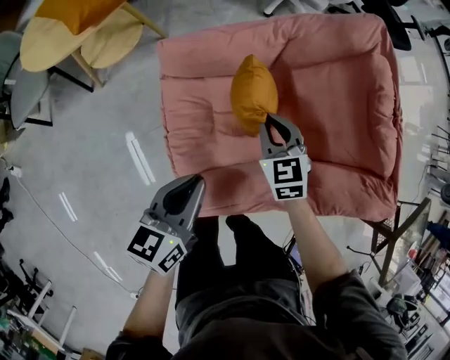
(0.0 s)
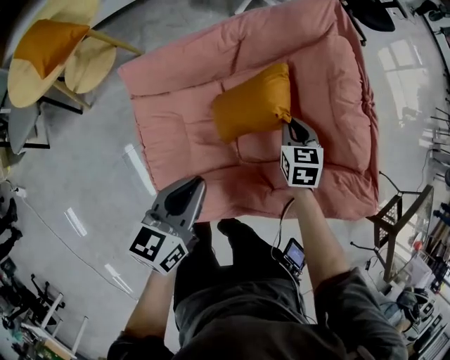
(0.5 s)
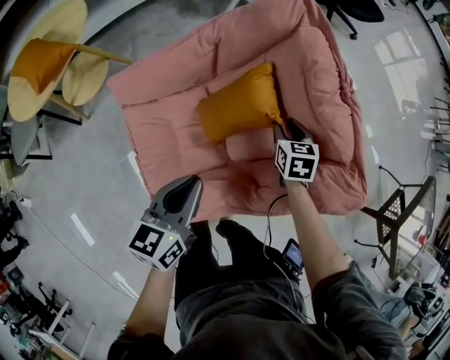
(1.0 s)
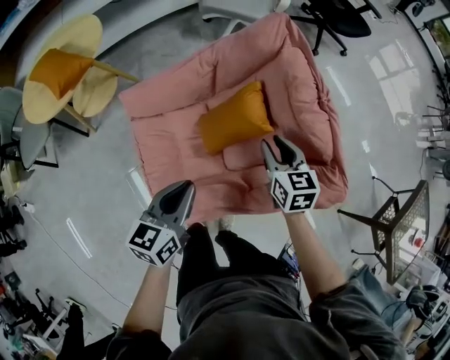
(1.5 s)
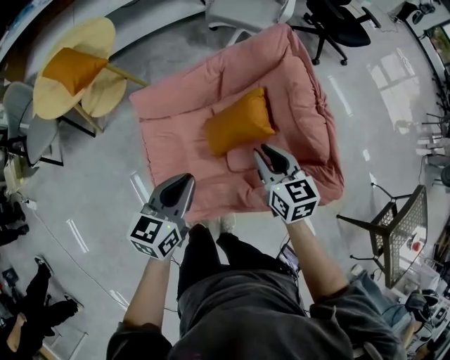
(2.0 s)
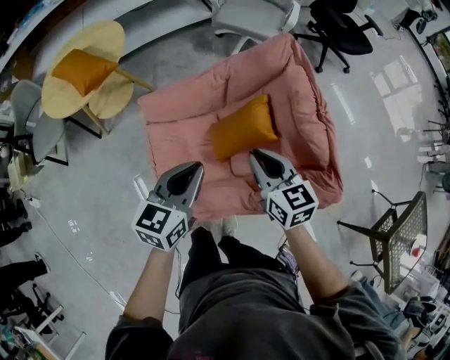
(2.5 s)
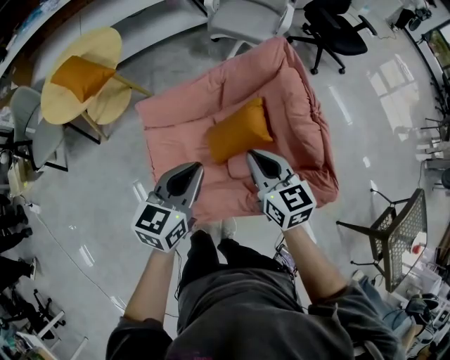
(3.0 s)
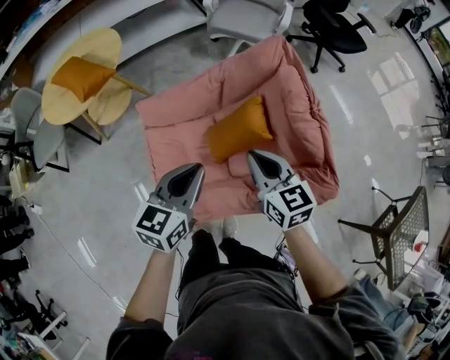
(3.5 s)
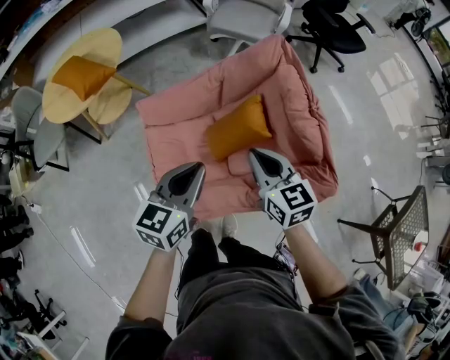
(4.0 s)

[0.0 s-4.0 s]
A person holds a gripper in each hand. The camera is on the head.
0.0 to 2.0 s: The grippers both shift to the right and upward by roughly 20 cm. The right gripper rotates approximately 30 degrees.
2.0 to 4.0 s: Both grippers travel together upward, roughly 5 cm.

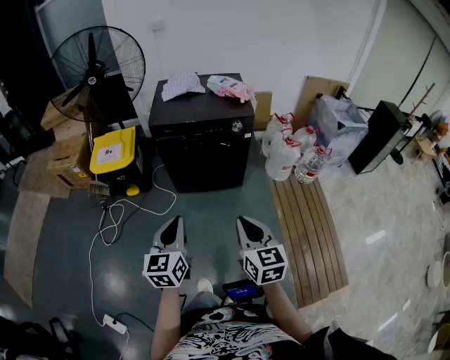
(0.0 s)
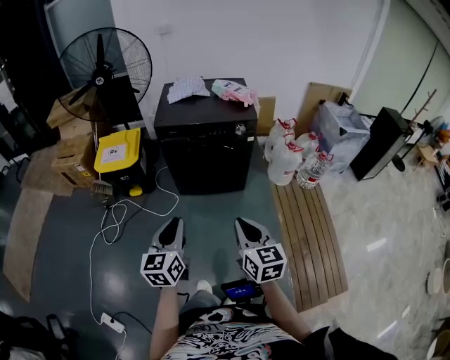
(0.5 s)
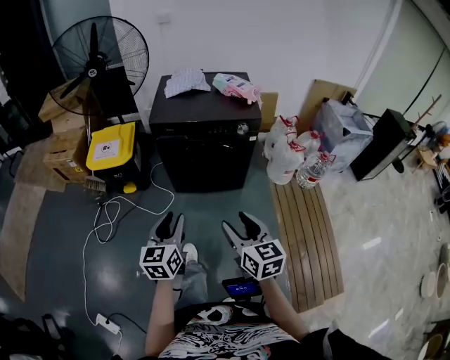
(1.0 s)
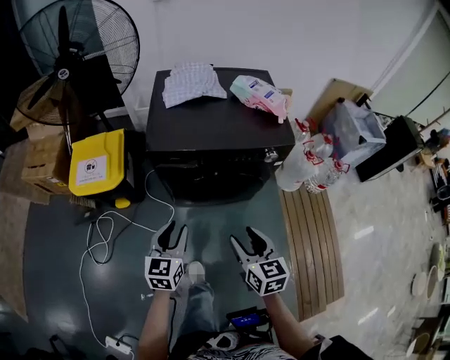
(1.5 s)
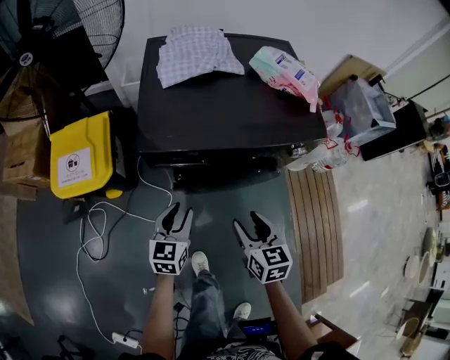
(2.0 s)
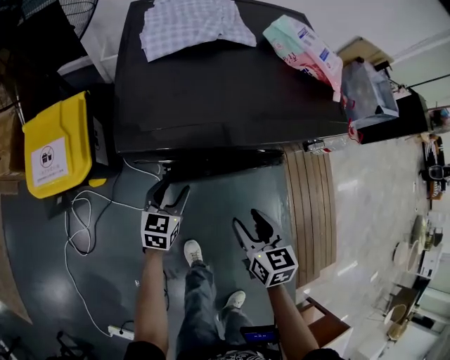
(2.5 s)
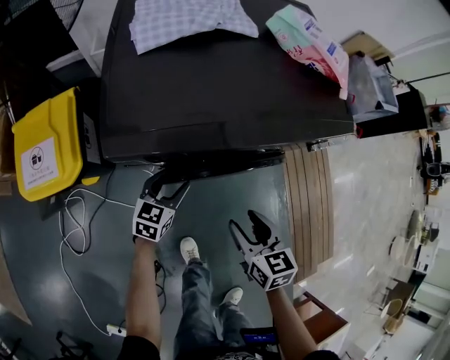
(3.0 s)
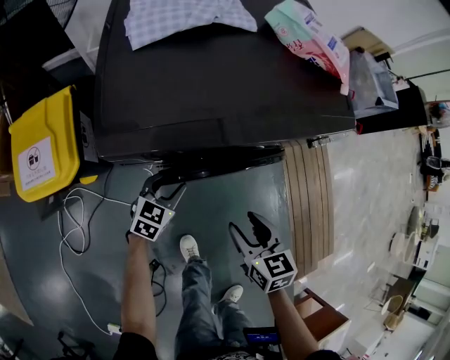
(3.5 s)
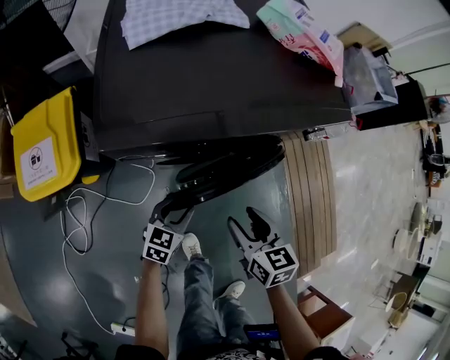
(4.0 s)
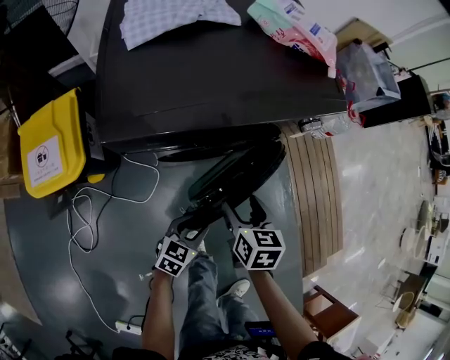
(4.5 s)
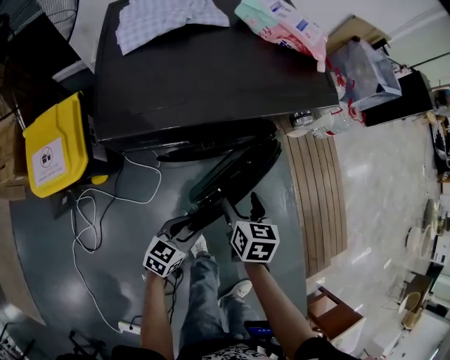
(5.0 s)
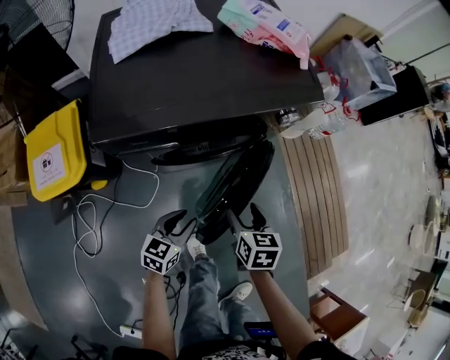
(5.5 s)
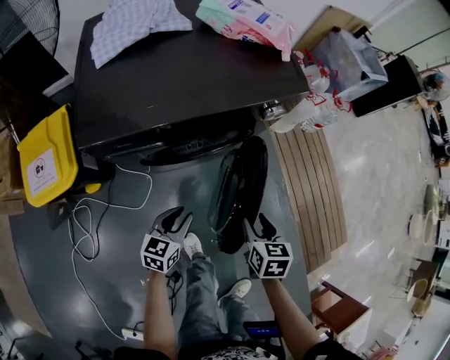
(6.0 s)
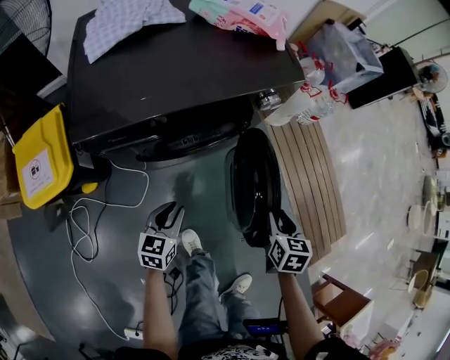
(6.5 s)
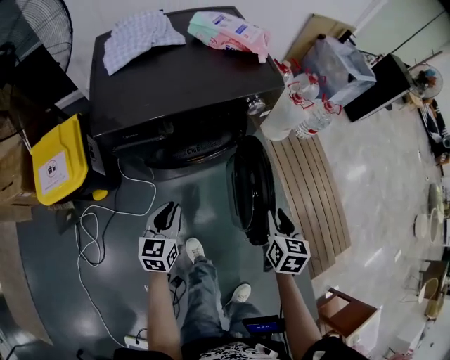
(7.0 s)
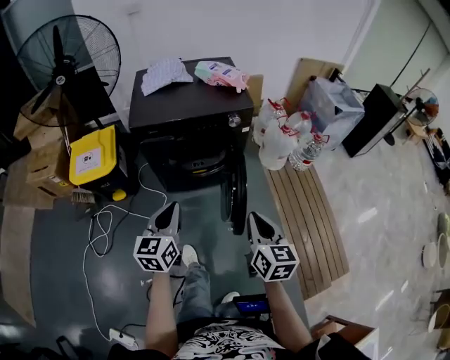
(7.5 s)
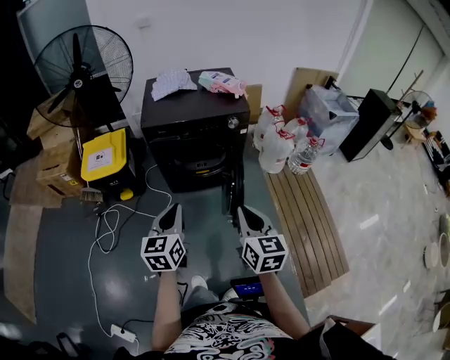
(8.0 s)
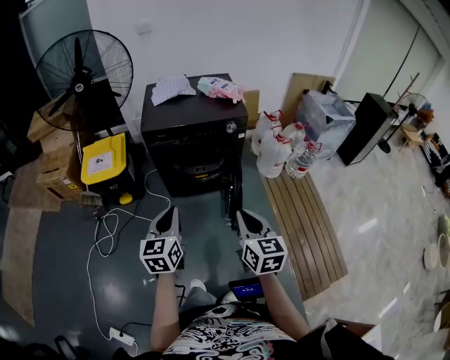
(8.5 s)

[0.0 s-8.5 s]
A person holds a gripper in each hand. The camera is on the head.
0.0 to 2.0 s: The two grippers travel together, forward, some 40 cm. The grippers both shift downward by roughly 25 cm. The left gripper opens its fingers. The right gripper opens up.
2.0 to 4.0 s: The right gripper is displaced downward by about 10 cm; the left gripper is displaced downward by approximately 15 cm, and swivels about 30 degrees.
4.0 to 6.5 s: The right gripper heads to the right, covering approximately 25 cm, and swivels some 30 degrees, while the left gripper shifts about 5 cm to the right.
6.5 to 8.5 s: Both grippers travel together upward, roughly 35 cm. The right gripper points its fingers approximately 30 degrees further upward, and closes its fingers, while the left gripper swivels some 30 degrees, and closes its fingers.

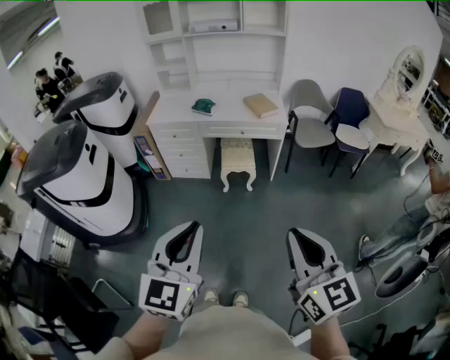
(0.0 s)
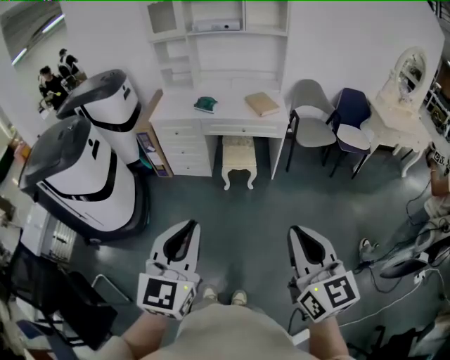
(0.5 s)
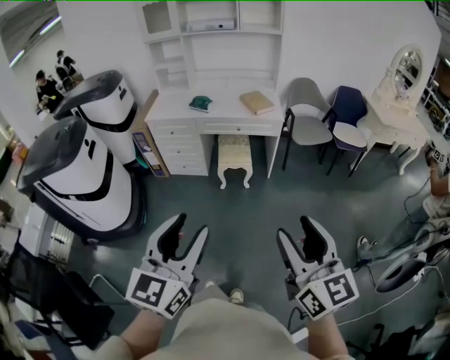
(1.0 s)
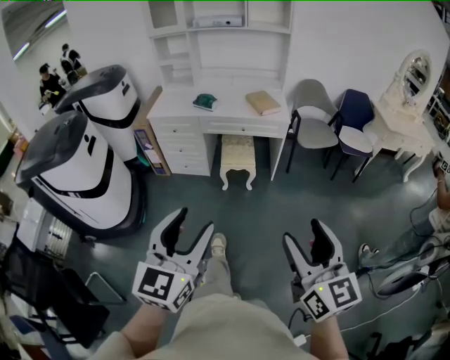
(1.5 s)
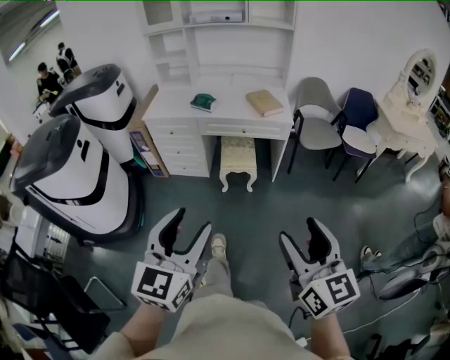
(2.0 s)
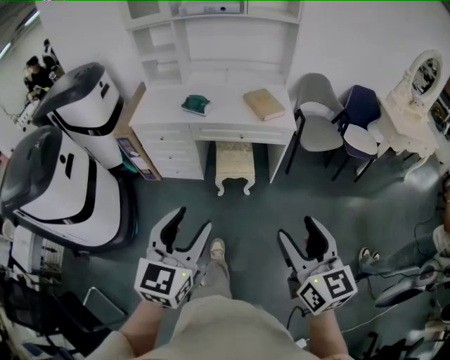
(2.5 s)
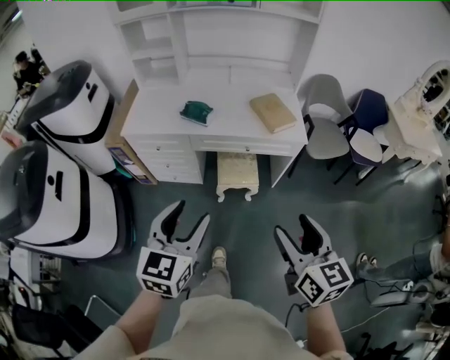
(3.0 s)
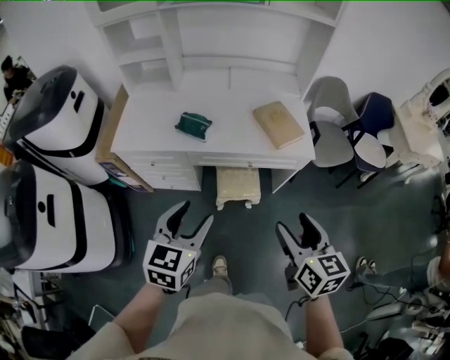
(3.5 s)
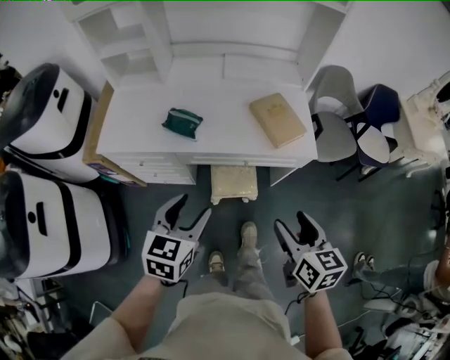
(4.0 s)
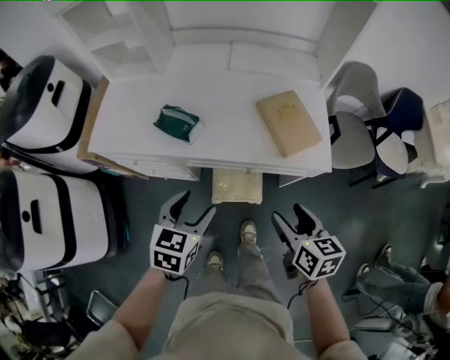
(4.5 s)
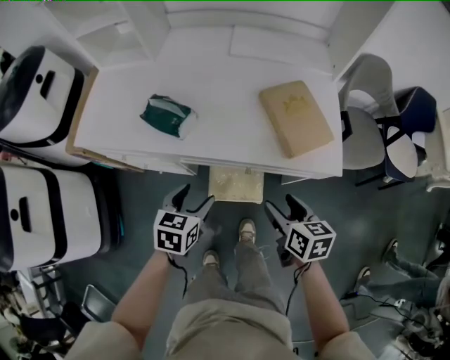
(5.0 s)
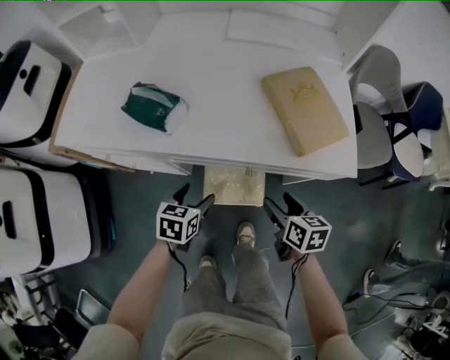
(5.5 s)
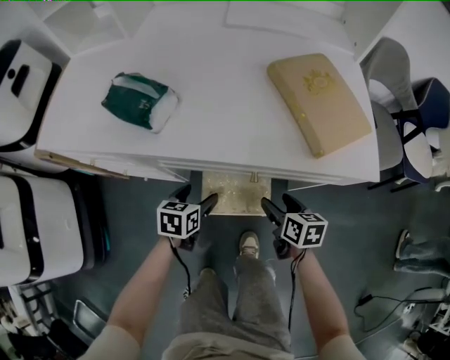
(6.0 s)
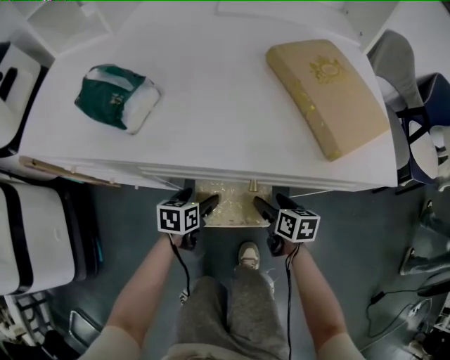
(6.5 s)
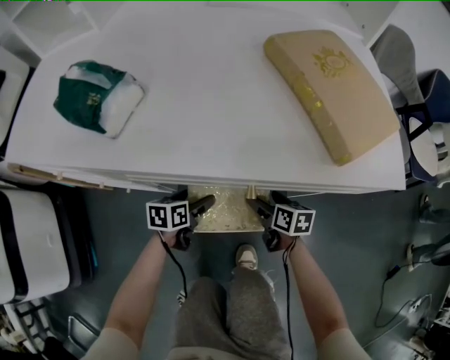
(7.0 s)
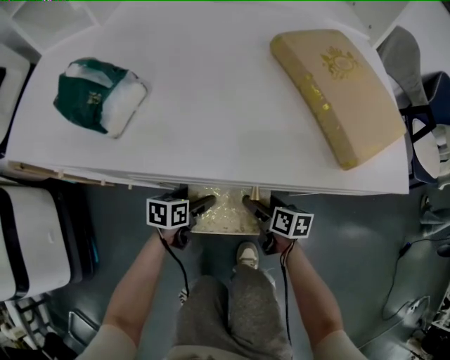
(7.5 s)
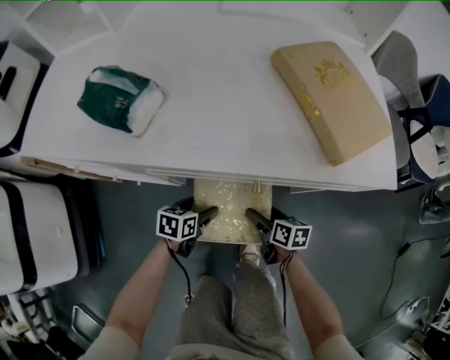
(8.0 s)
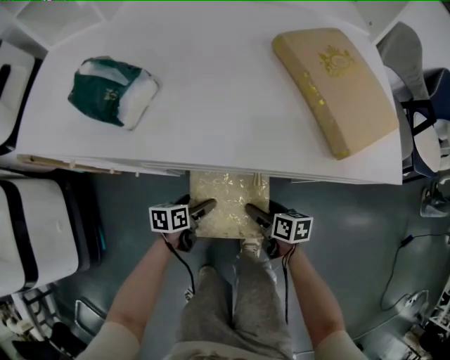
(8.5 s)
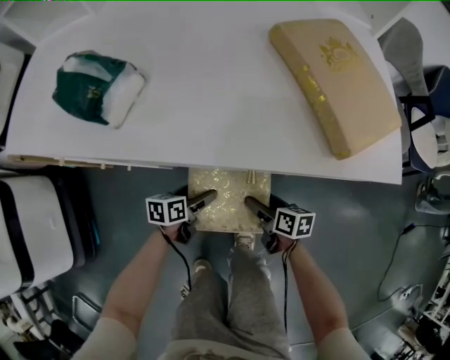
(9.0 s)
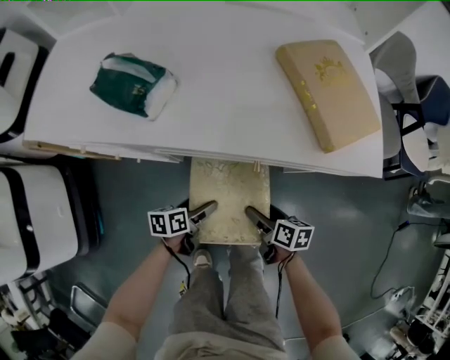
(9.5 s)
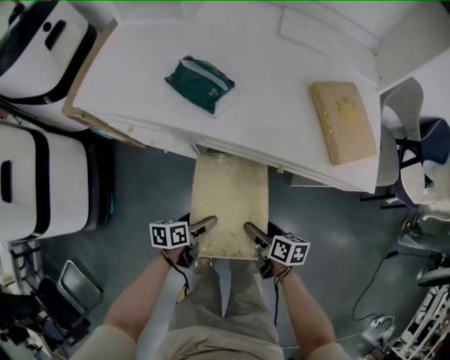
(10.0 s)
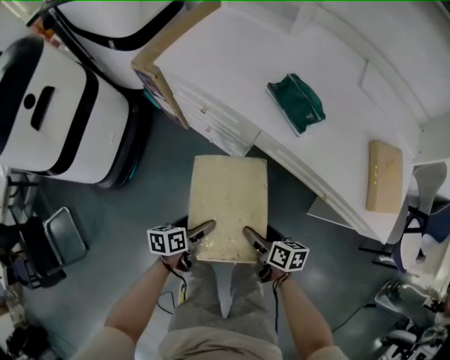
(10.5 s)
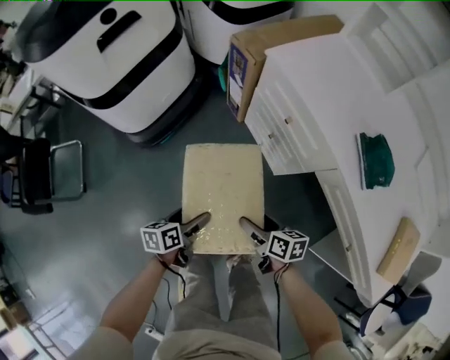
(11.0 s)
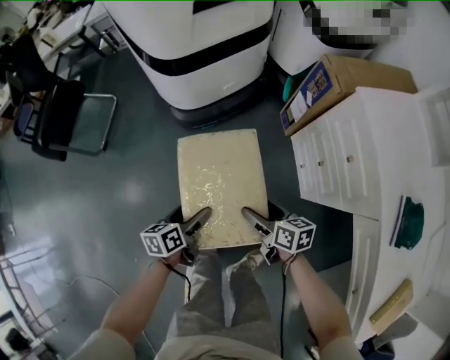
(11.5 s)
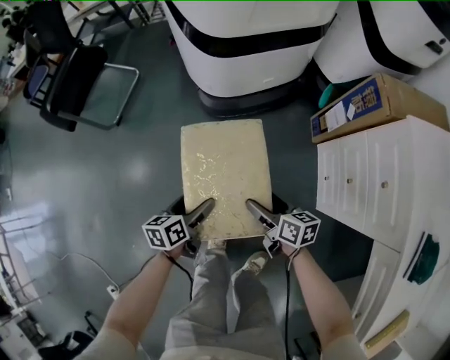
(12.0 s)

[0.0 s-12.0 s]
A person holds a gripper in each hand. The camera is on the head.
0.0 to 2.0 s: The right gripper moves forward and downward, approximately 10 cm, and opens its fingers. The left gripper heads forward, covering approximately 10 cm, and opens its fingers.
2.0 to 4.0 s: The two grippers travel together, forward, approximately 60 cm. The left gripper turns by approximately 30 degrees, while the right gripper changes its angle by some 30 degrees.
4.0 to 6.0 s: The left gripper goes approximately 50 cm downward, and turns by roughly 30 degrees. Meanwhile the right gripper heads downward and forward, covering about 50 cm.
6.0 to 8.0 s: Both grippers travel together downward, some 10 cm.
8.0 to 10.0 s: The right gripper goes roughly 20 cm upward, backward and to the left; the left gripper is displaced backward, upward and to the left by about 20 cm, and turns by approximately 30 degrees.
10.0 to 12.0 s: The two grippers travel together, some 50 cm. The left gripper rotates about 80 degrees; the right gripper changes its angle by approximately 80 degrees.

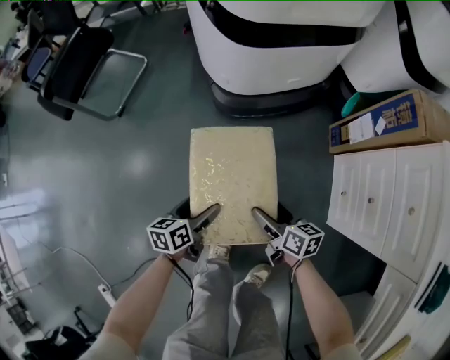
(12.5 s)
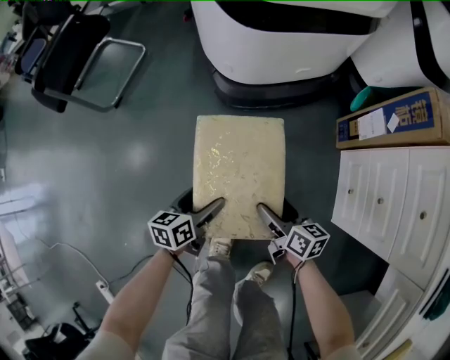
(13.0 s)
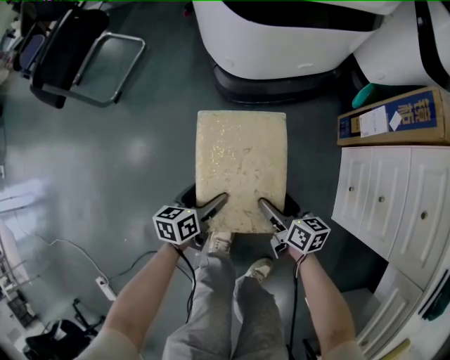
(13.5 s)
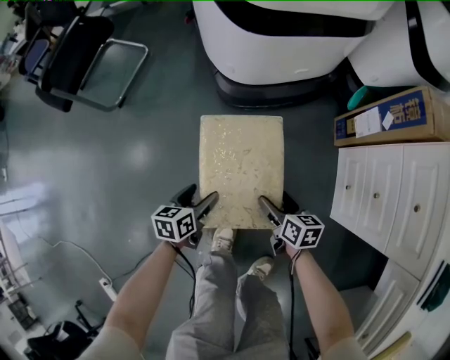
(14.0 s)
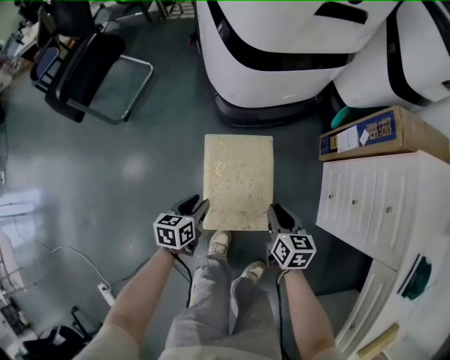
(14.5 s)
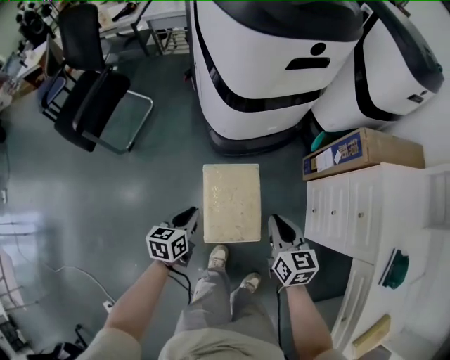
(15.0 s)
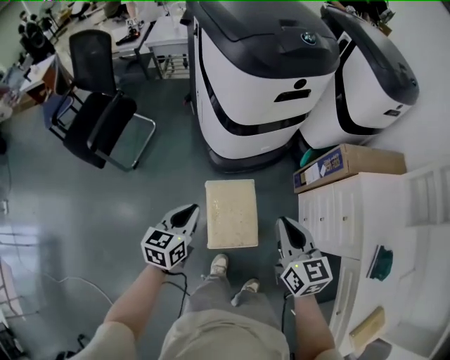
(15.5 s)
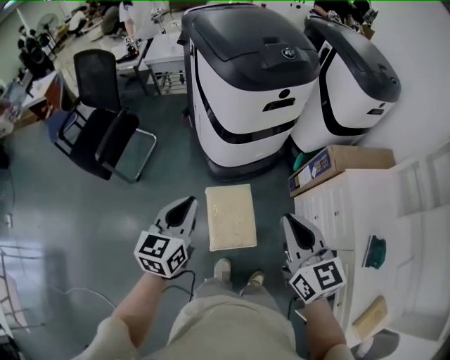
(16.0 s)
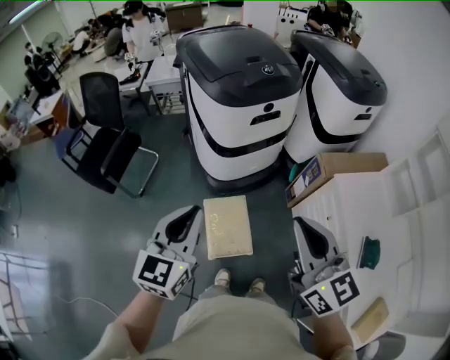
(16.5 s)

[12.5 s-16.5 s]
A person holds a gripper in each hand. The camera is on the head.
12.5 to 14.5 s: The right gripper shifts roughly 10 cm upward, swivels approximately 30 degrees, and closes its fingers, while the left gripper is displaced upward by about 5 cm, and closes its fingers.
14.5 to 16.5 s: Both grippers travel together upward, some 70 cm. The right gripper tips its fingers upward by about 40 degrees. The left gripper angles its fingers upward, by some 30 degrees.
